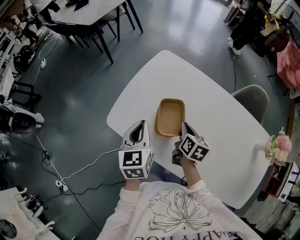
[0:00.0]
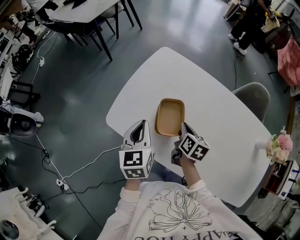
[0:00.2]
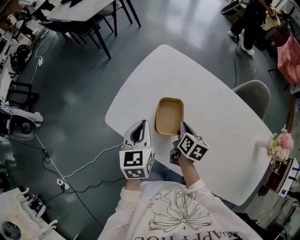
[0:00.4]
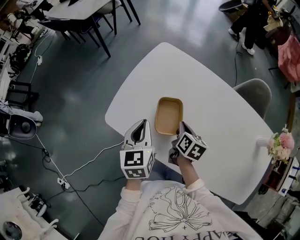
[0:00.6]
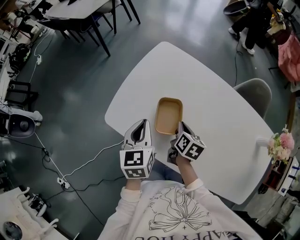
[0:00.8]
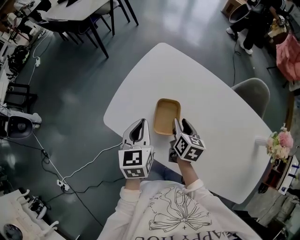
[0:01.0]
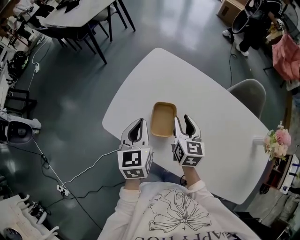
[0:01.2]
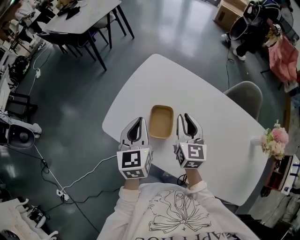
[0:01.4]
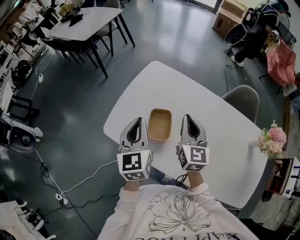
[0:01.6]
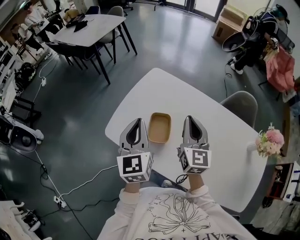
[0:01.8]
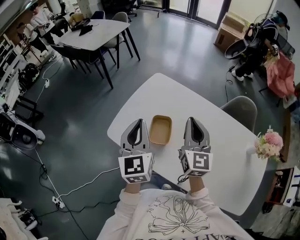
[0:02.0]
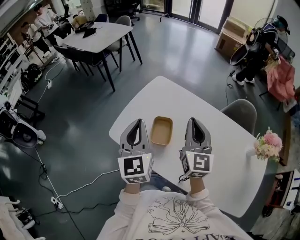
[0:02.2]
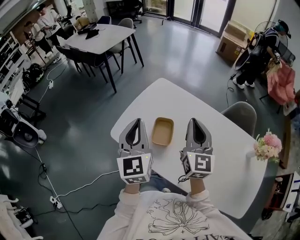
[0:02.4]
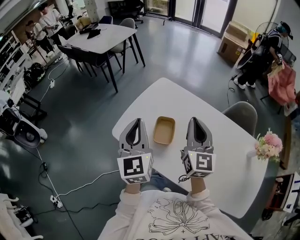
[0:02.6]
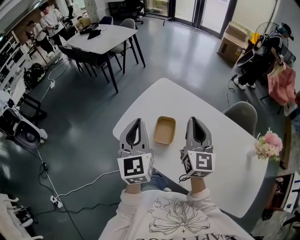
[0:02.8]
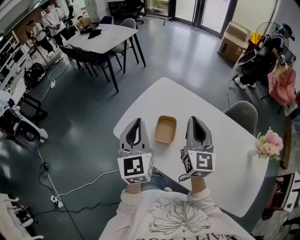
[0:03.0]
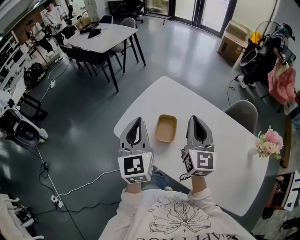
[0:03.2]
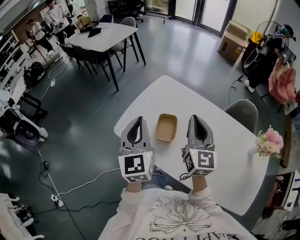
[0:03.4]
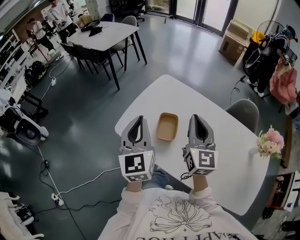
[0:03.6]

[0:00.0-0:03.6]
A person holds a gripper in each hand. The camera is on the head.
0:00.0 to 0:01.8: The right gripper moves upward, about 20 cm, angles its fingers upward, by approximately 30 degrees, and opens, then closes again, while the left gripper is displaced upward by about 10 cm.
0:01.8 to 0:03.6: Both grippers travel together upward and backward, approximately 10 cm.

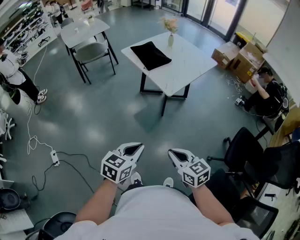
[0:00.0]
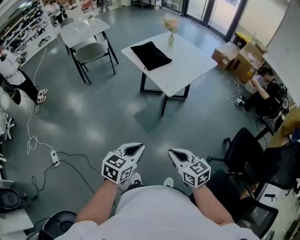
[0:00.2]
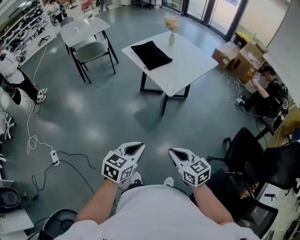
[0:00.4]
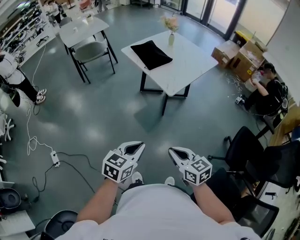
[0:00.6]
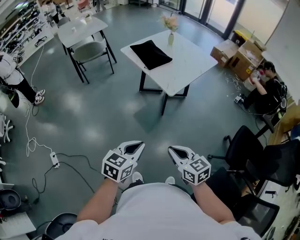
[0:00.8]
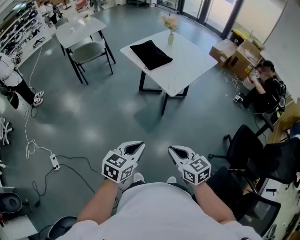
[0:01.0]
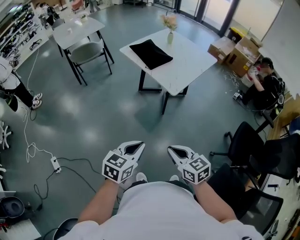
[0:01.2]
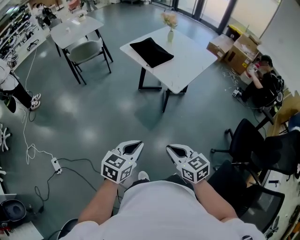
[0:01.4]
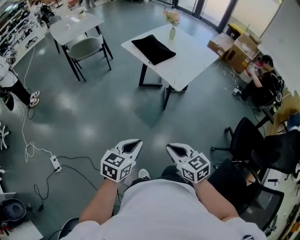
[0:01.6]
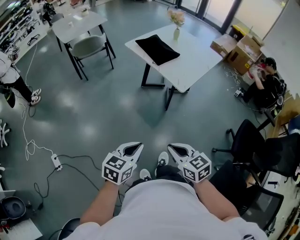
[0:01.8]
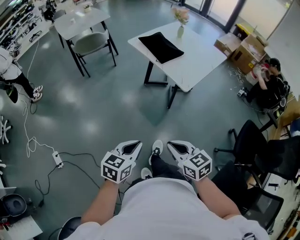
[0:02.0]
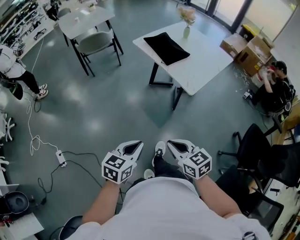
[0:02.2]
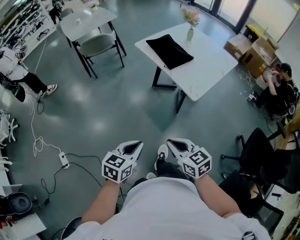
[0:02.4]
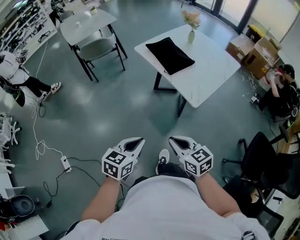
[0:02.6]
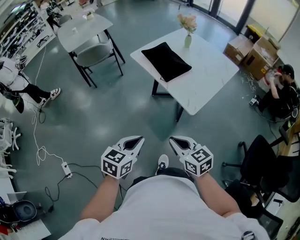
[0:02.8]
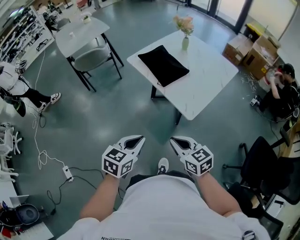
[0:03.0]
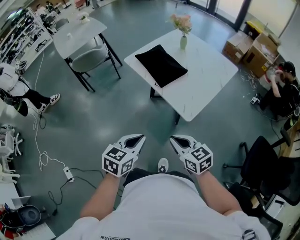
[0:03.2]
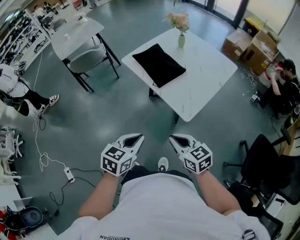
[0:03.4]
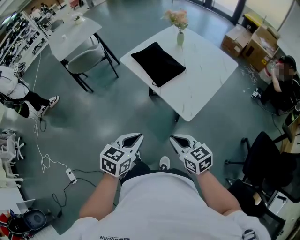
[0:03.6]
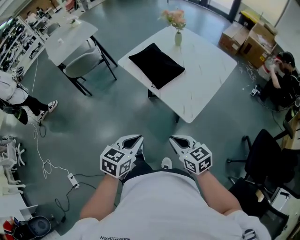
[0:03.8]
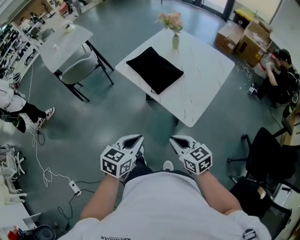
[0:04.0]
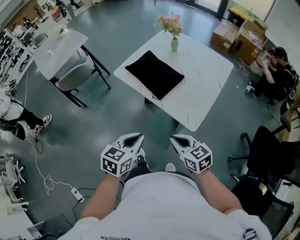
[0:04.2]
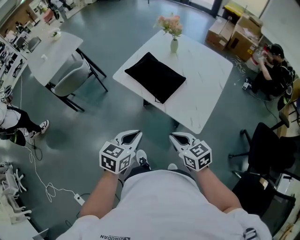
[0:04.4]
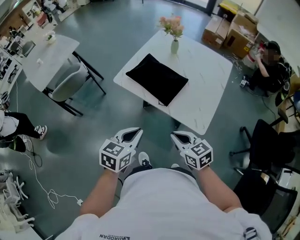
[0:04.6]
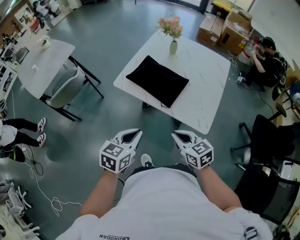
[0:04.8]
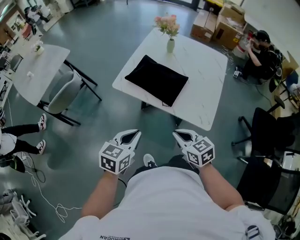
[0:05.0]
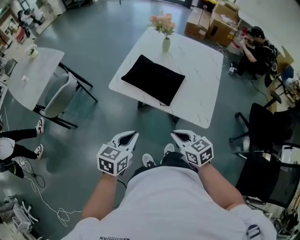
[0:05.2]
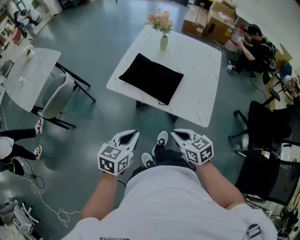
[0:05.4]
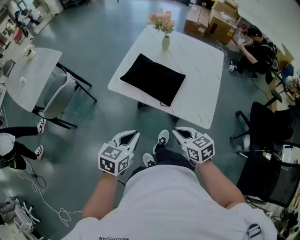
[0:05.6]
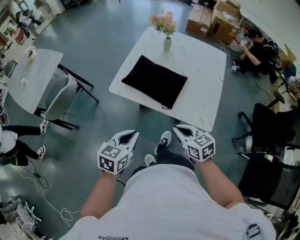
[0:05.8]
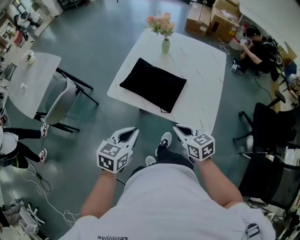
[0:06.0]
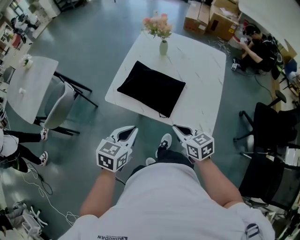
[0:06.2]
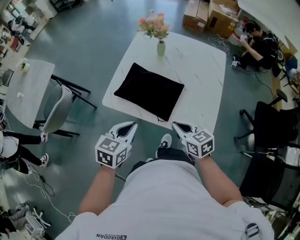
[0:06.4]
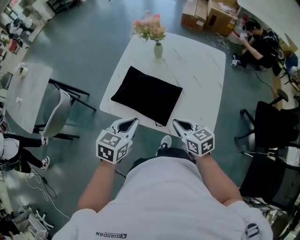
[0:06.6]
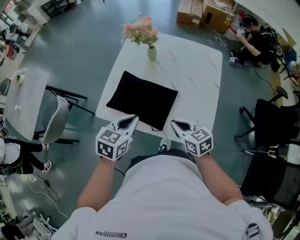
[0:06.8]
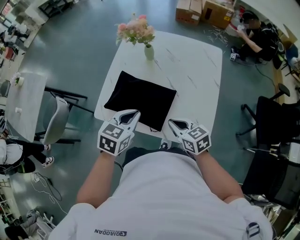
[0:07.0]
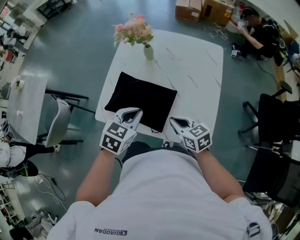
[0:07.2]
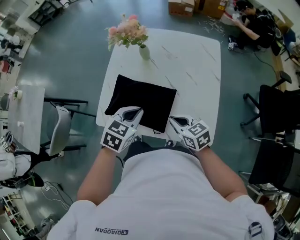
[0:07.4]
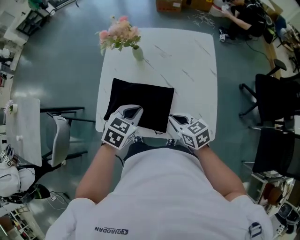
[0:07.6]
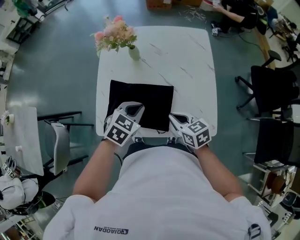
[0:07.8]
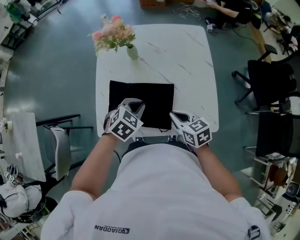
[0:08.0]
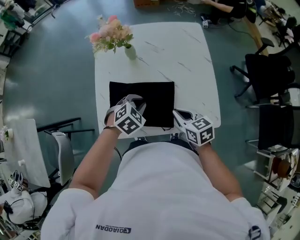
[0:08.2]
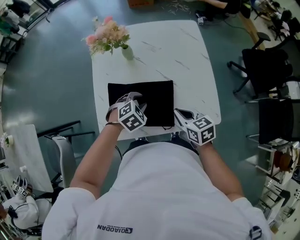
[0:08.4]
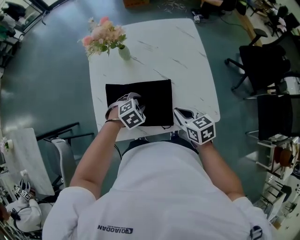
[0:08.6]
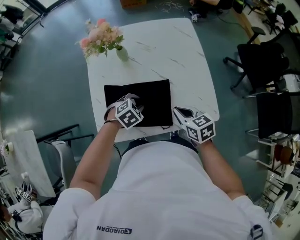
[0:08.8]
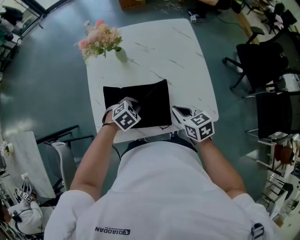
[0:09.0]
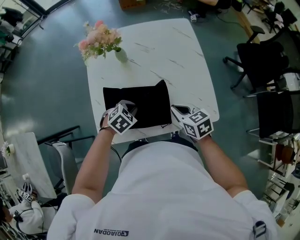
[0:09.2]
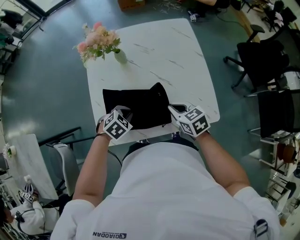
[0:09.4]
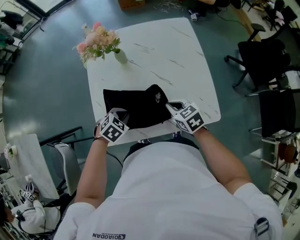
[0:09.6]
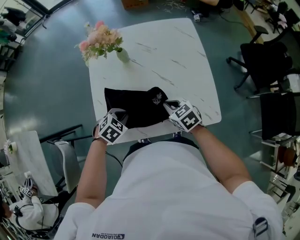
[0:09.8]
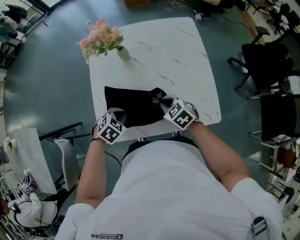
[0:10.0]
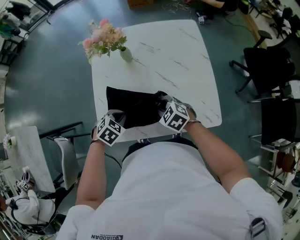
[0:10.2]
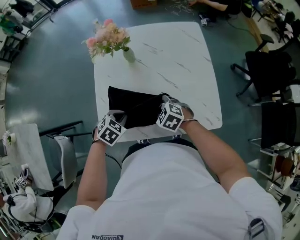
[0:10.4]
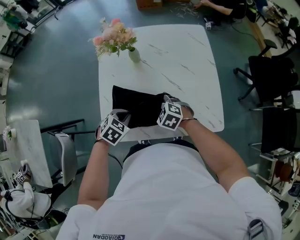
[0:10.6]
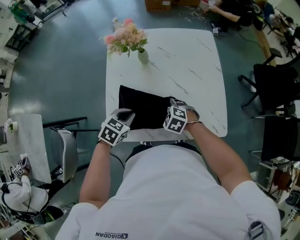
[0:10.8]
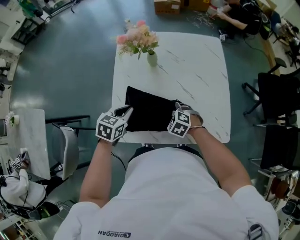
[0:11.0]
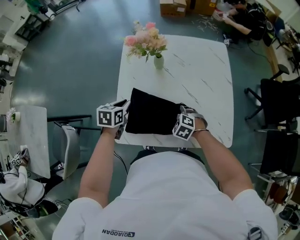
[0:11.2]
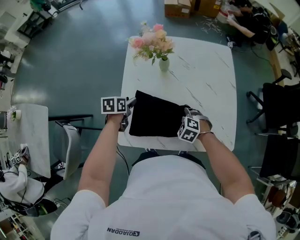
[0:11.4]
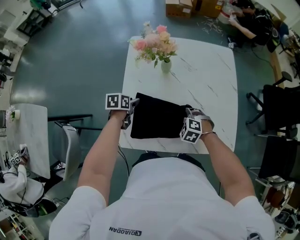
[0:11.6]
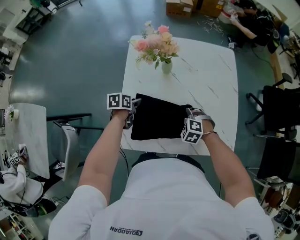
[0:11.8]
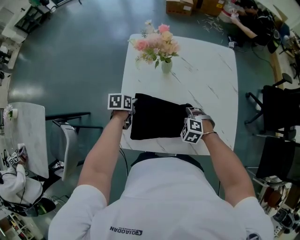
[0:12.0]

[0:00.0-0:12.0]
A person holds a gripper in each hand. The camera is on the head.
0:00.0 to 0:01.6: The grippers both shift to the left by about 10 cm.
0:01.6 to 0:03.0: The two grippers go approximately 25 cm forward.
0:03.0 to 0:04.4: Both grippers travel together forward, some 20 cm.
0:04.4 to 0:06.0: Both grippers move forward and to the left, about 15 cm.
0:06.0 to 0:07.6: Both grippers travel together forward, some 20 cm. The left gripper swivels roughly 30 degrees.
0:07.6 to 0:09.0: The left gripper is displaced downward by approximately 10 cm, swivels roughly 40 degrees, and opens, then closes again.
0:09.0 to 0:10.4: The left gripper goes about 10 cm to the left. The right gripper travels to the left and downward by some 10 cm, rolls counterclockwise, seen from behind, by approximately 40 degrees, and opens.
0:10.4 to 0:12.0: The left gripper goes some 20 cm forward, to the left and downward, rolls counterclockwise, seen from behind, by some 60 degrees, and opens and closes again. Meanwhile the right gripper ends up about 5 cm from where it was, and changes its angle by roughly 30 degrees.

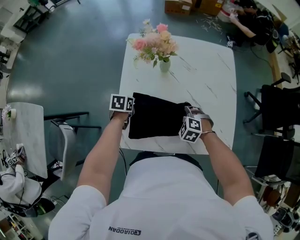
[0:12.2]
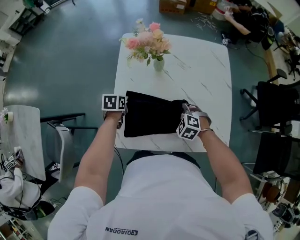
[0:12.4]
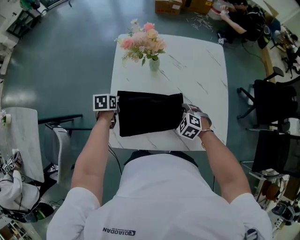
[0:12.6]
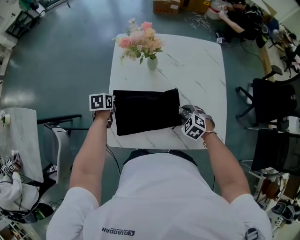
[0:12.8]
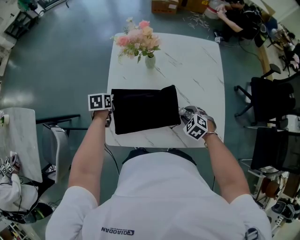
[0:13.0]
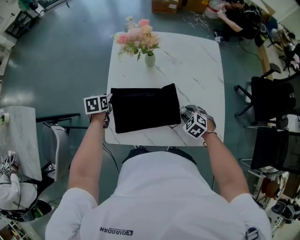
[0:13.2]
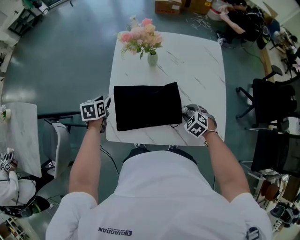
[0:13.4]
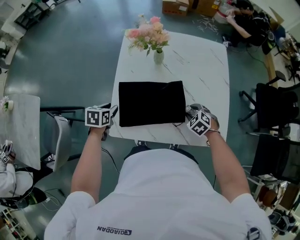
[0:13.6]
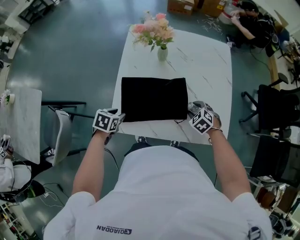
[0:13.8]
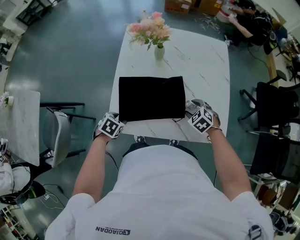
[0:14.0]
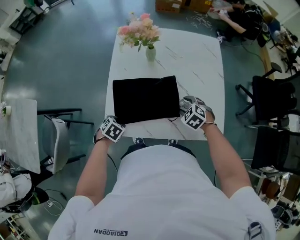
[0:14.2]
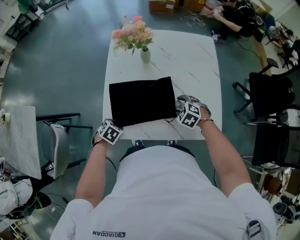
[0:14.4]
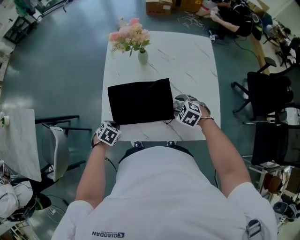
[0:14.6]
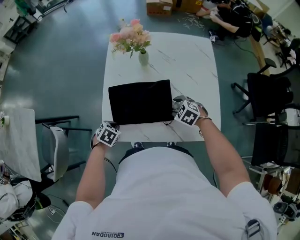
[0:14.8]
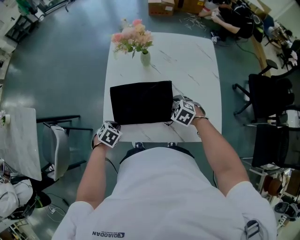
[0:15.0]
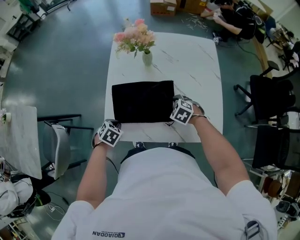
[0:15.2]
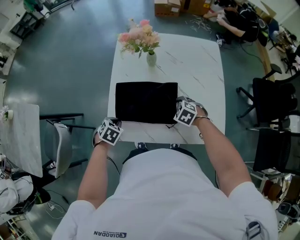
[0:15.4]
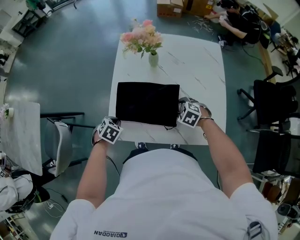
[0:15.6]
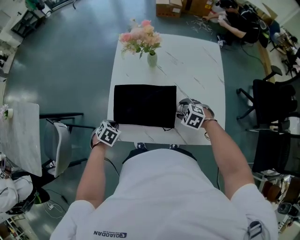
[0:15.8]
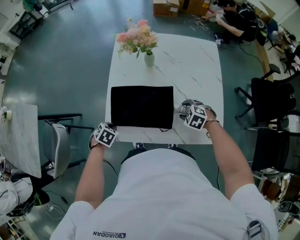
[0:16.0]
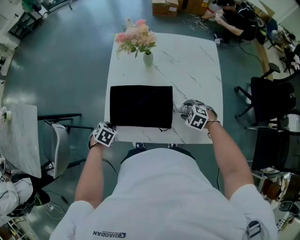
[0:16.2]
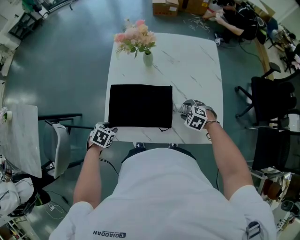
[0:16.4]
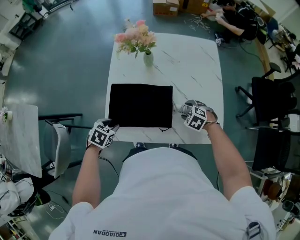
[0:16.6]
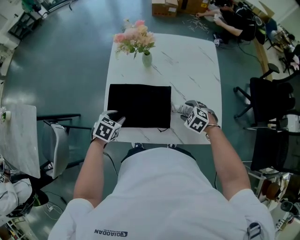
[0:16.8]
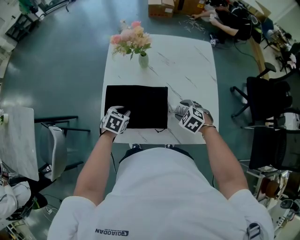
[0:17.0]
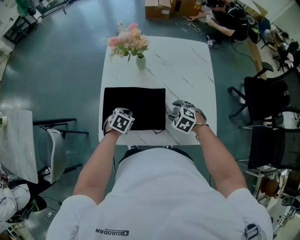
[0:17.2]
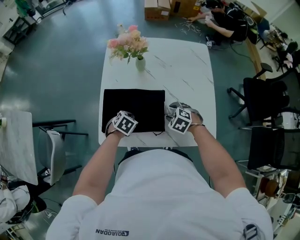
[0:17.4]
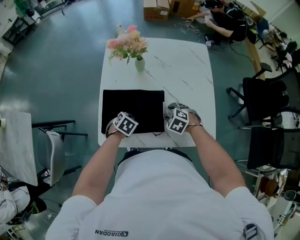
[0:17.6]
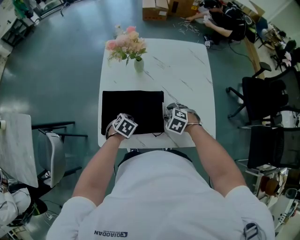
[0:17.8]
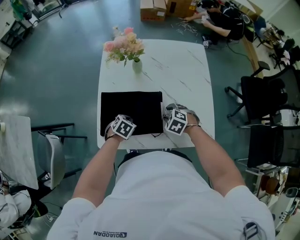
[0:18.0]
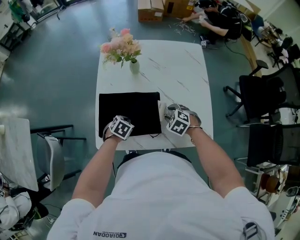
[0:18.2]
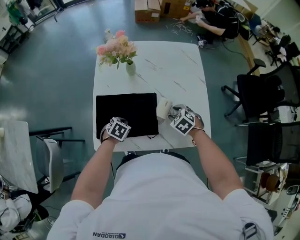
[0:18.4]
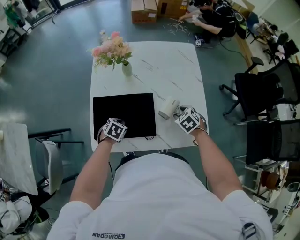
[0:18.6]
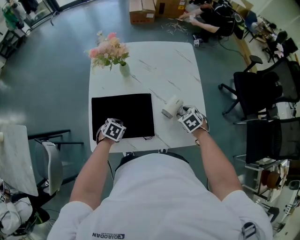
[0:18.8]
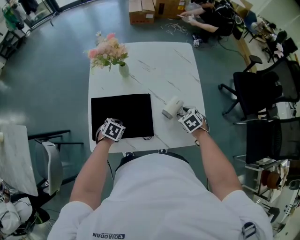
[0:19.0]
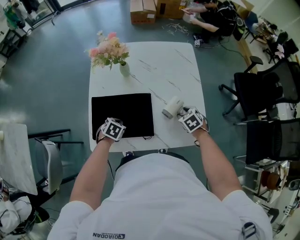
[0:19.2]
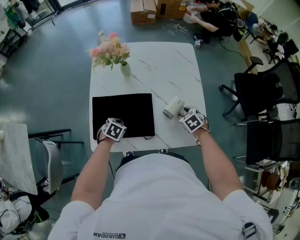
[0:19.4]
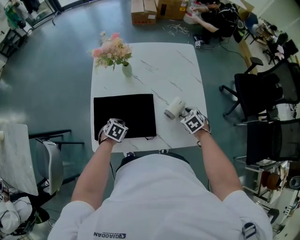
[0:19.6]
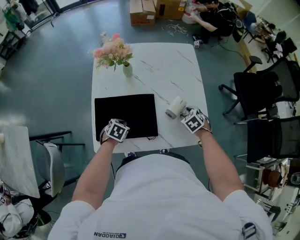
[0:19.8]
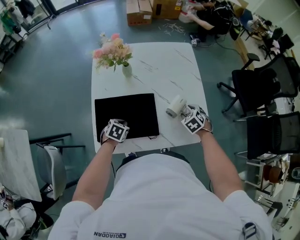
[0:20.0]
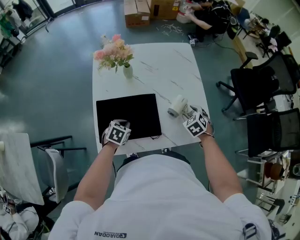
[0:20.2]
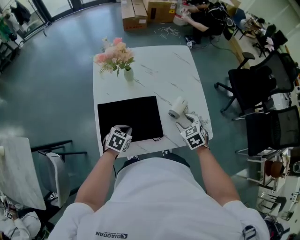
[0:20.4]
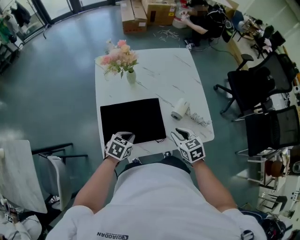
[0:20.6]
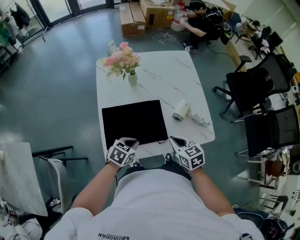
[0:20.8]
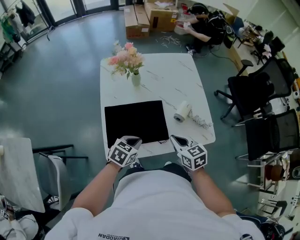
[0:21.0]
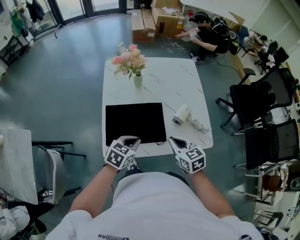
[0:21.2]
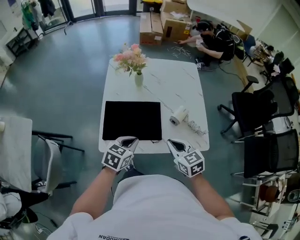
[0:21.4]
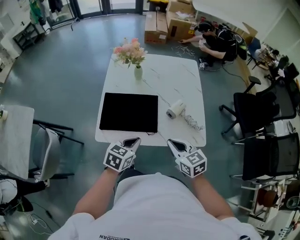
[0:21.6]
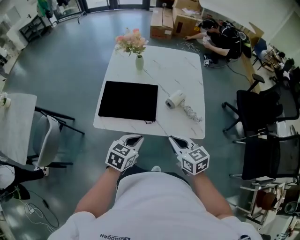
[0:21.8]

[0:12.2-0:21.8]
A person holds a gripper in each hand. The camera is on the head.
0:12.2 to 0:13.8: The right gripper heads to the right, covering approximately 10 cm. Meanwhile the left gripper moves backward, some 15 cm, and opens.
0:13.8 to 0:15.4: The left gripper swivels some 20 degrees, and closes, while the right gripper moves roughly 5 cm.
0:15.4 to 0:17.0: The right gripper shifts by approximately 5 cm; the left gripper ends up about 10 cm from where it was, and opens its fingers.
0:17.0 to 0:18.6: The left gripper shifts by about 5 cm, and closes its fingers. The right gripper goes about 5 cm to the right, and turns by approximately 20 degrees.
0:18.6 to 0:20.2: The grippers make only small movements.
0:20.2 to 0:21.8: The right gripper changes place by roughly 25 cm, tips its fingers upward by some 30 degrees, and closes its fingers. Meanwhile the left gripper moves about 25 cm, and changes its angle by some 30 degrees.
